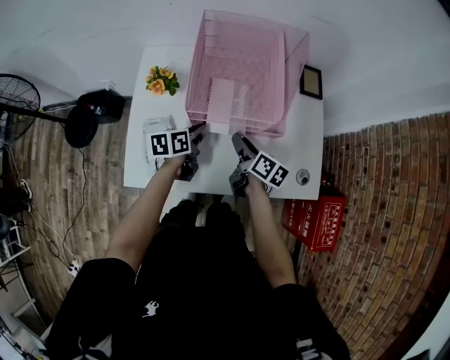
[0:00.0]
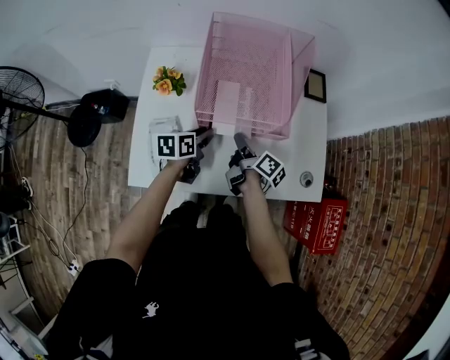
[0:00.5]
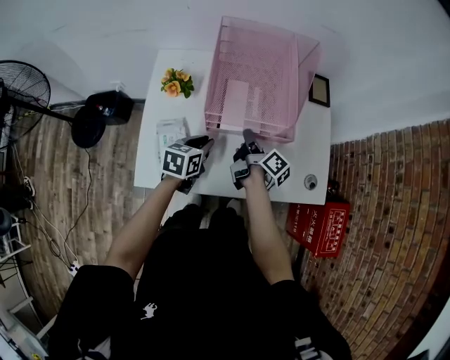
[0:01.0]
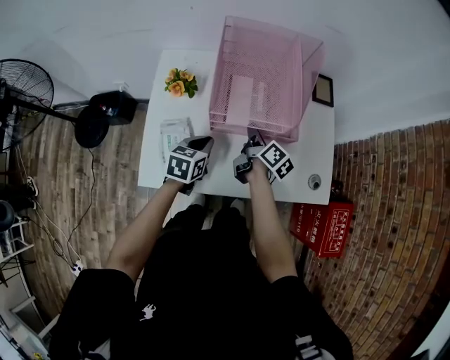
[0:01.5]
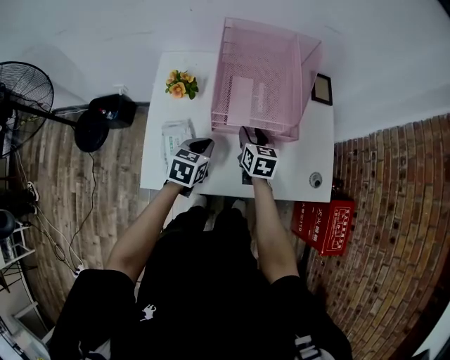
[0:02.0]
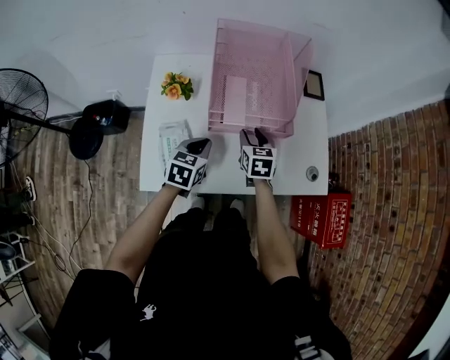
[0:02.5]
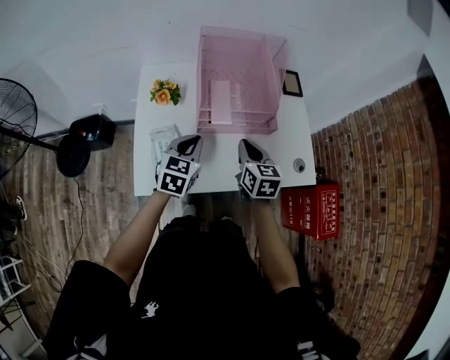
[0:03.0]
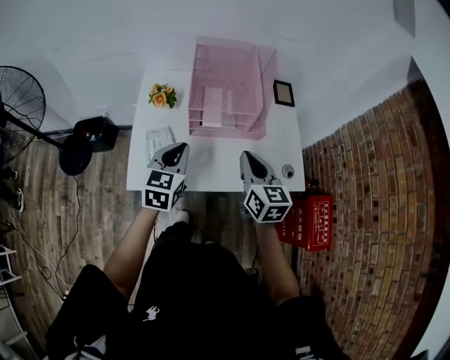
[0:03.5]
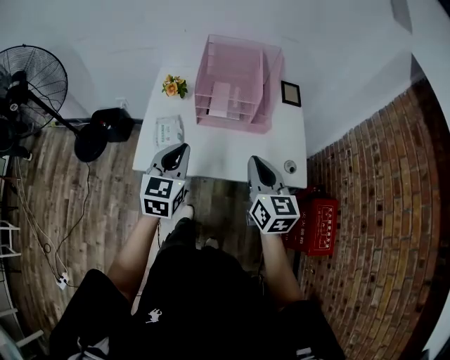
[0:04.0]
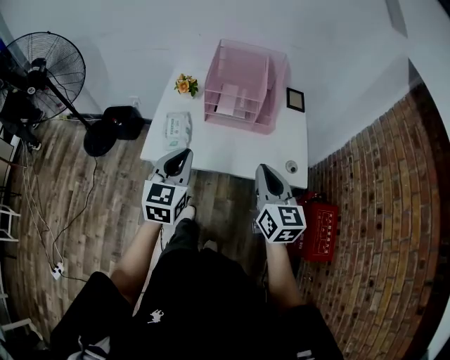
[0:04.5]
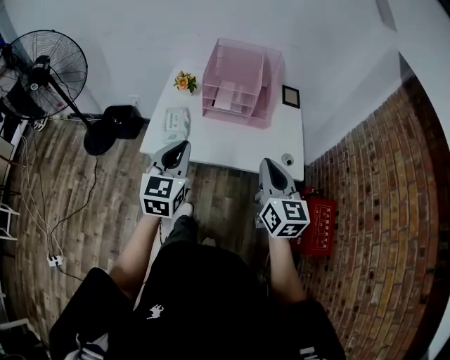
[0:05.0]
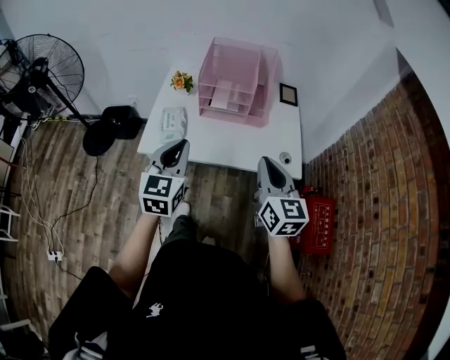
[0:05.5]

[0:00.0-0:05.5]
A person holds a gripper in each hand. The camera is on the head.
0.0 to 2.0 s: The right gripper changes place by about 5 cm, swivels about 40 degrees, and closes, then reopens; the left gripper moves backward, about 5 cm, and turns by some 30 degrees.
2.0 to 3.5 s: The grippers both shift upward and backward by about 20 cm. The right gripper closes. Meanwhile the left gripper changes its angle by roughly 20 degrees.
3.5 to 5.5 s: The left gripper heads backward and upward, covering about 20 cm. The right gripper is displaced backward and to the right by about 20 cm.

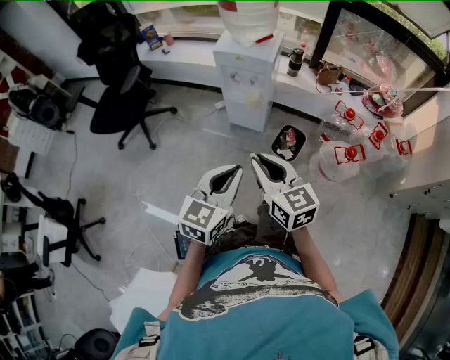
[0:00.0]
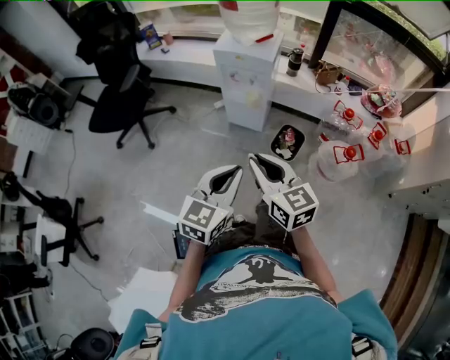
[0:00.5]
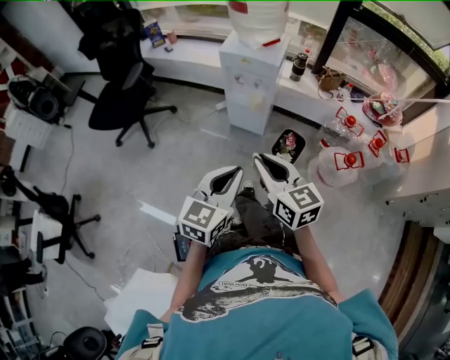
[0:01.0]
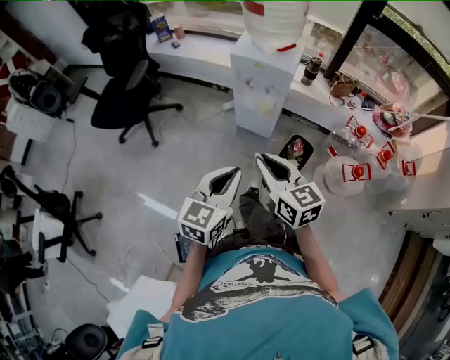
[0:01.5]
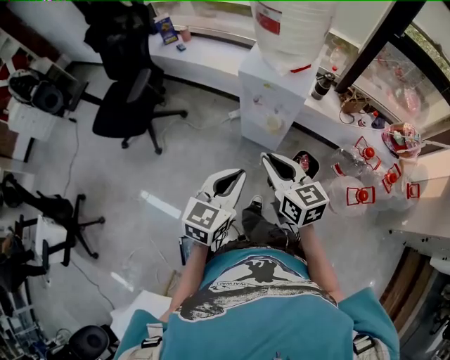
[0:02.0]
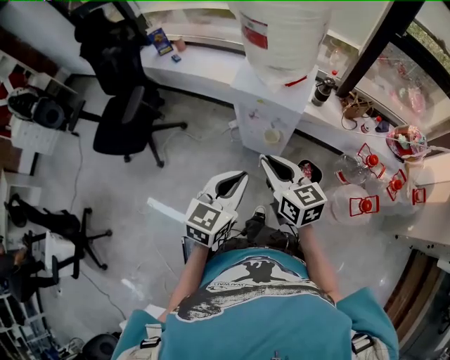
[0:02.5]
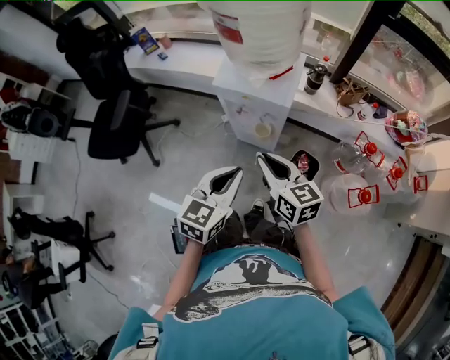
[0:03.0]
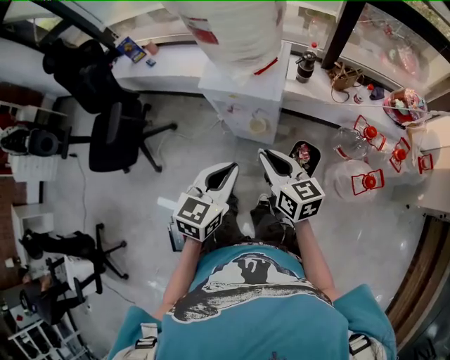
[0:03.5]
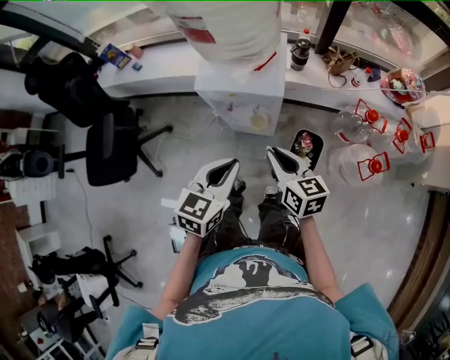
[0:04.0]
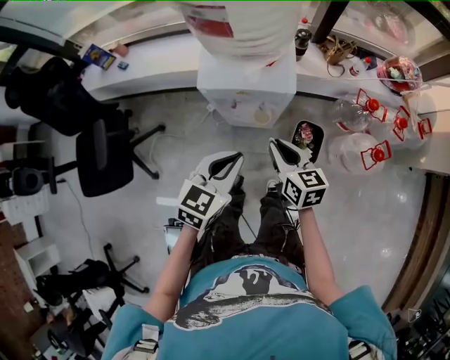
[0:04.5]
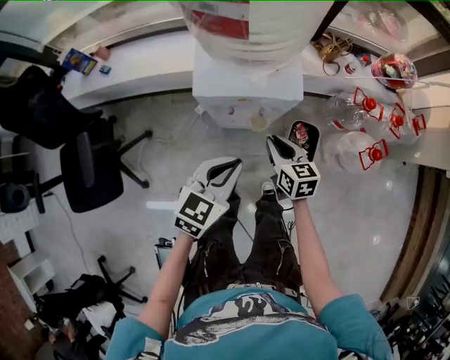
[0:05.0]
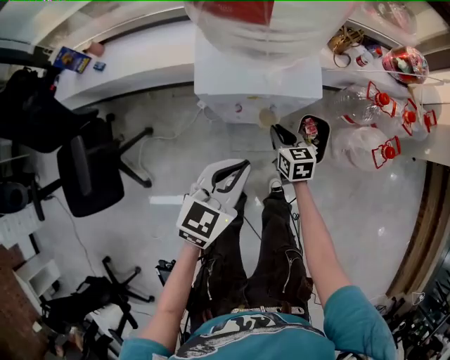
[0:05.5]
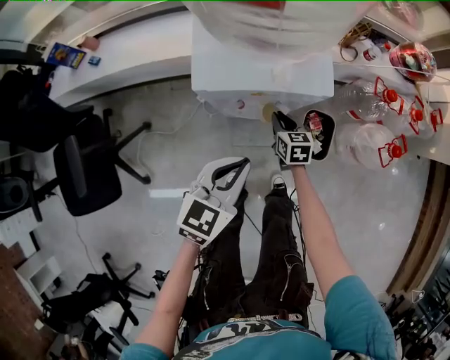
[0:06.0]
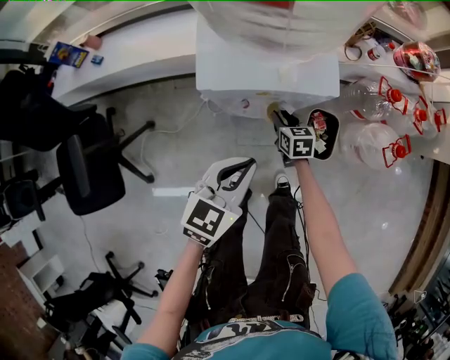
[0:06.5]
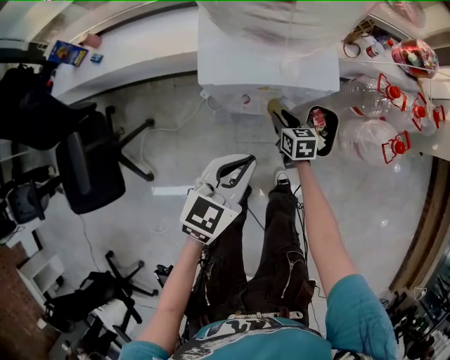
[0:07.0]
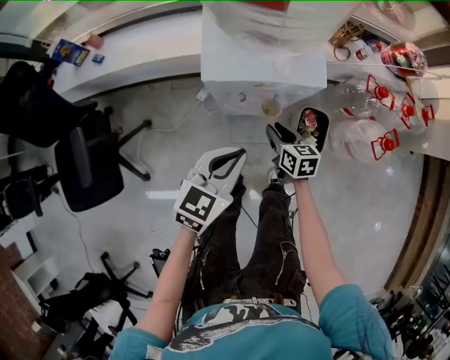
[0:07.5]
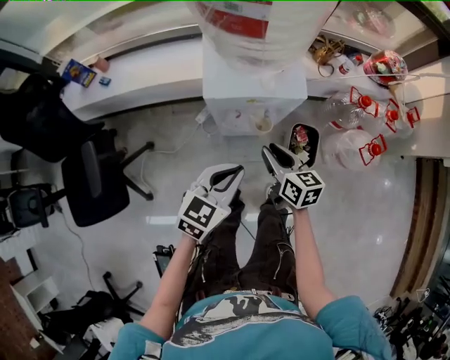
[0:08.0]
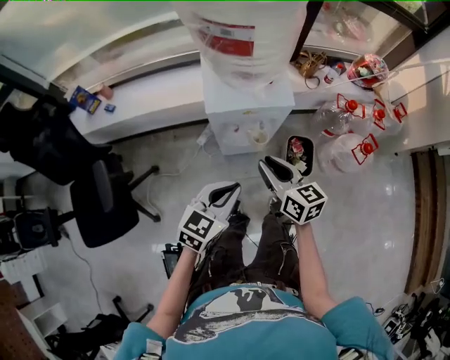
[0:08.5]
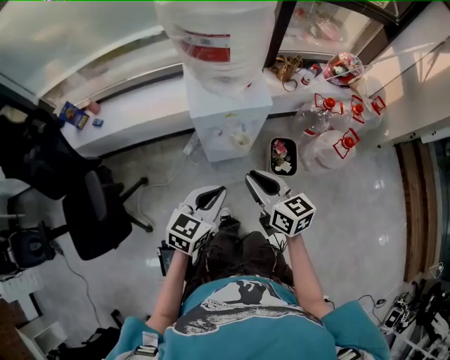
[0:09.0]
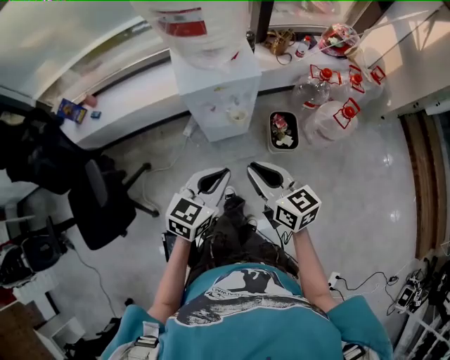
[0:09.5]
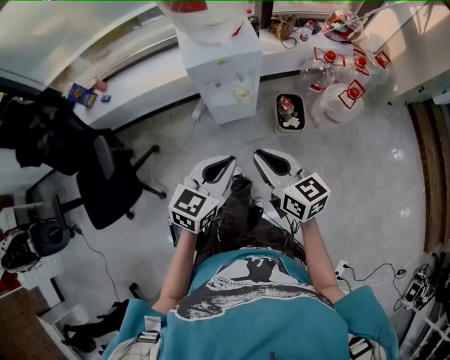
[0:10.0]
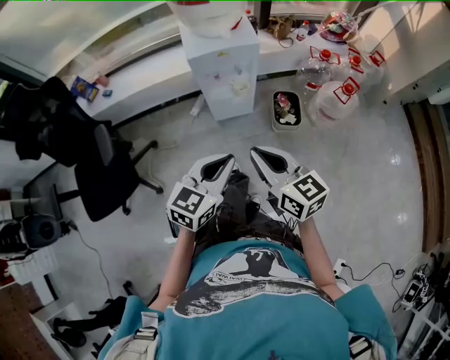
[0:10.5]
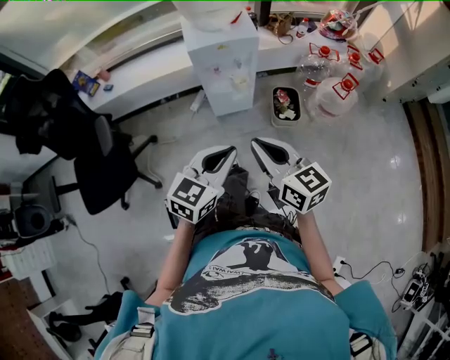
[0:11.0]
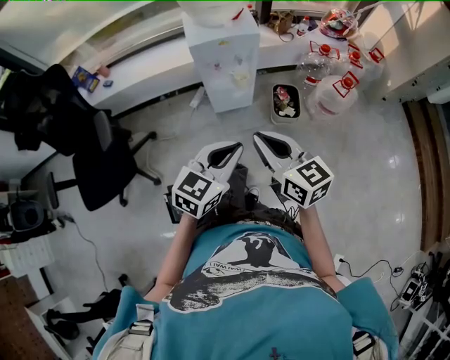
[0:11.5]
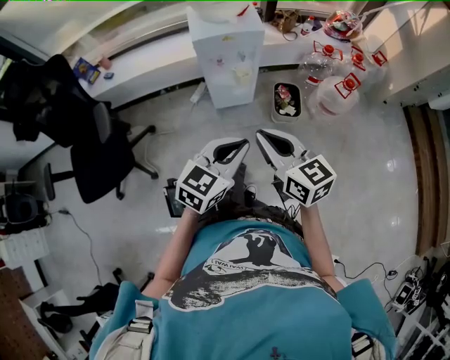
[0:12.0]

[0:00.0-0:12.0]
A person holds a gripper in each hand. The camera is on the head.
0.0 to 2.0 s: Both grippers travel together forward, some 20 cm.
2.0 to 4.0 s: The left gripper travels forward by about 15 cm. Meanwhile the right gripper shifts some 15 cm forward, downward and to the right, and turns by about 20 degrees.
4.0 to 6.0 s: The right gripper goes approximately 30 cm downward and forward, and turns by approximately 30 degrees. The left gripper moves downward, to the left and forward, approximately 15 cm.
6.0 to 8.0 s: The left gripper heads upward, covering some 5 cm. Meanwhile the right gripper is displaced upward and backward by some 25 cm, and turns by some 20 degrees.
8.0 to 10.0 s: Both grippers travel together backward and upward, approximately 25 cm. The right gripper closes.
10.0 to 12.0 s: The two grippers go approximately 10 cm backward.

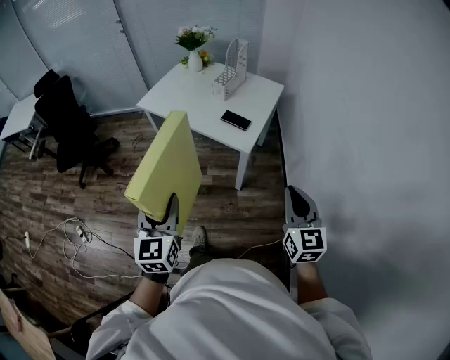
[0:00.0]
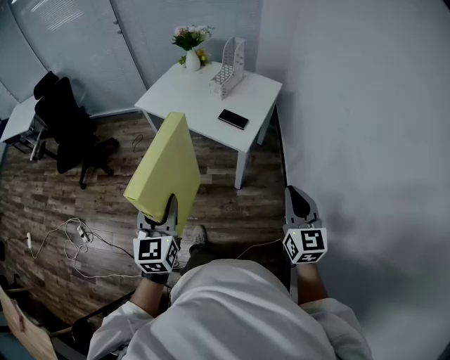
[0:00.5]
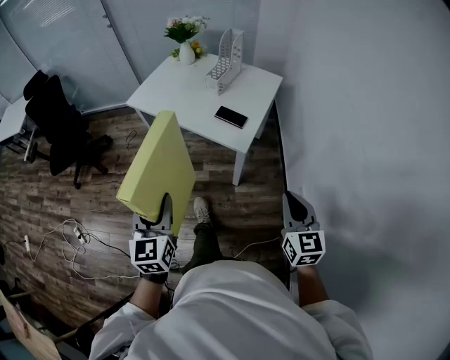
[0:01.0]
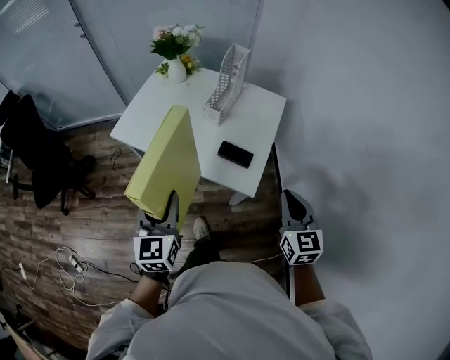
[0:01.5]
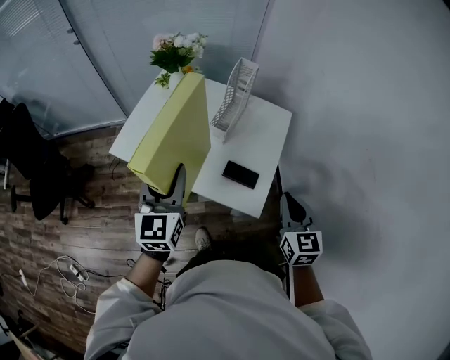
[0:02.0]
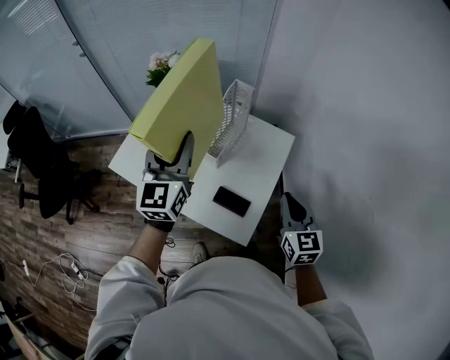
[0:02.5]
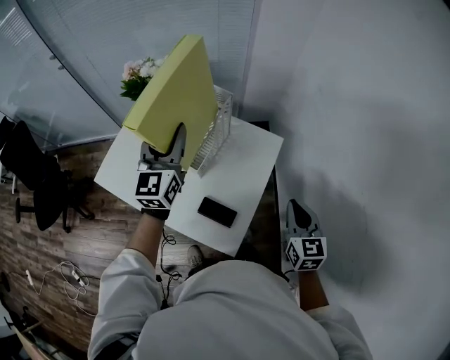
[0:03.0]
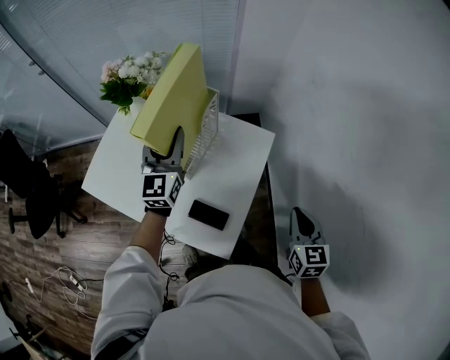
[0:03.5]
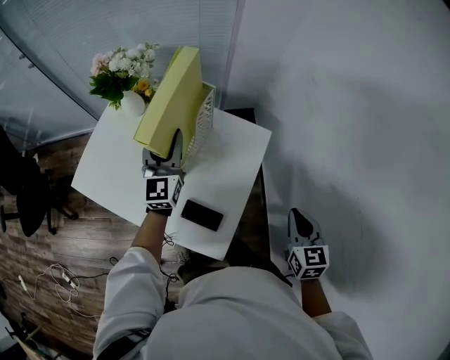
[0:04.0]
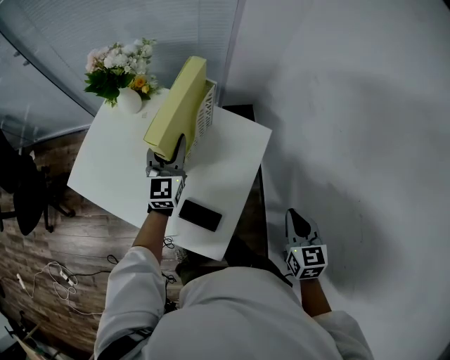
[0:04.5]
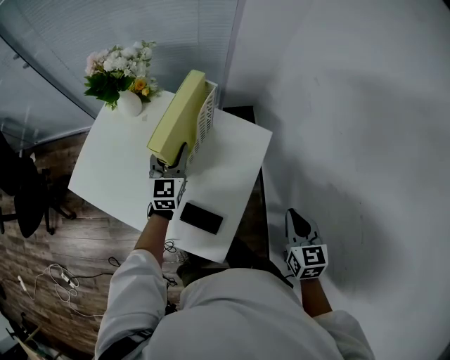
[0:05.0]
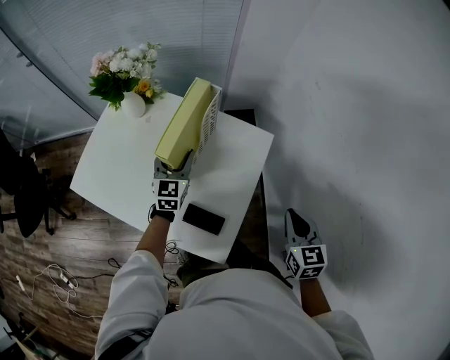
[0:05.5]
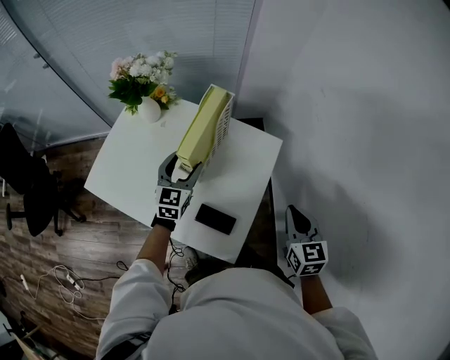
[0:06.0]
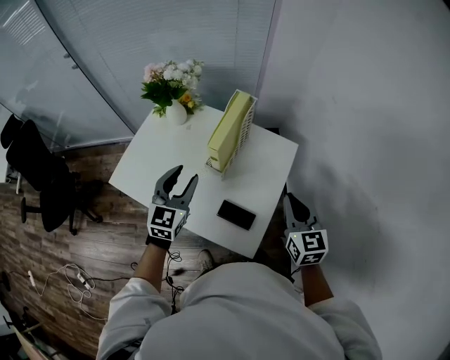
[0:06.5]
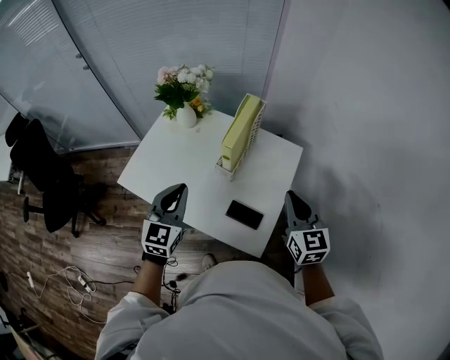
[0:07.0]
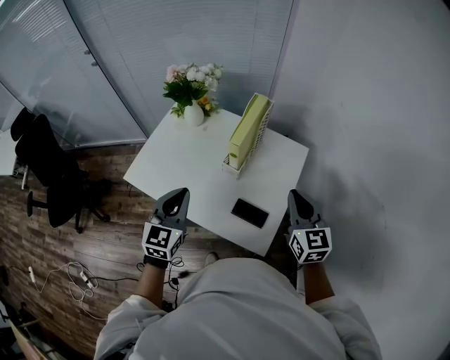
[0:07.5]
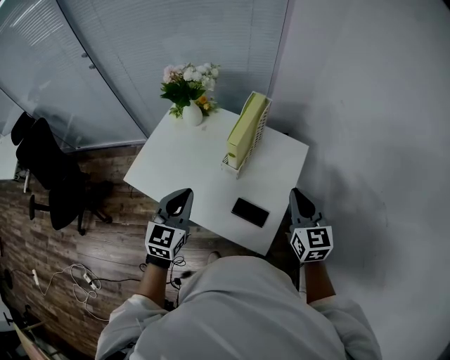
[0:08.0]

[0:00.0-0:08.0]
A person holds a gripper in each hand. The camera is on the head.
0.0 to 2.0 s: Both grippers travel together forward, some 40 cm.
2.0 to 4.0 s: The left gripper goes some 35 cm forward and to the right, while the right gripper heads to the right and forward, covering roughly 25 cm.
4.0 to 6.0 s: The right gripper goes about 5 cm to the left; the left gripper is displaced downward by approximately 10 cm, changes its angle by some 20 degrees, and opens.
6.0 to 8.0 s: The right gripper is displaced to the left and upward by about 15 cm. The left gripper travels backward, upward and to the left by some 25 cm, and closes.

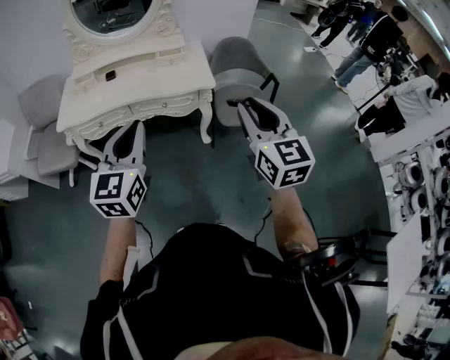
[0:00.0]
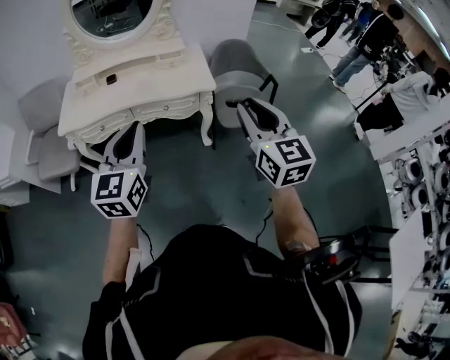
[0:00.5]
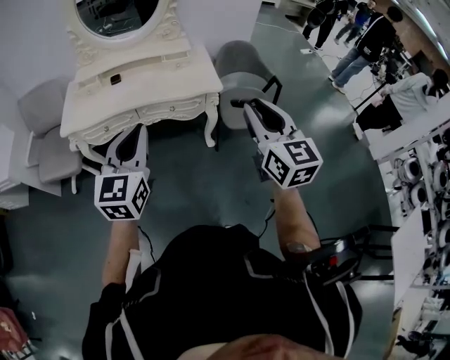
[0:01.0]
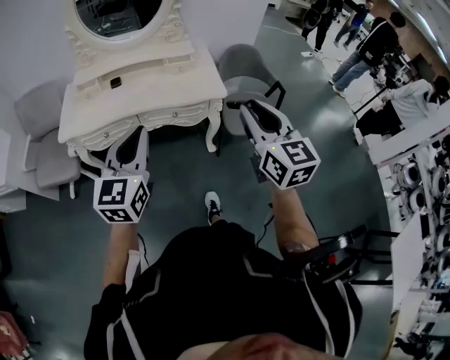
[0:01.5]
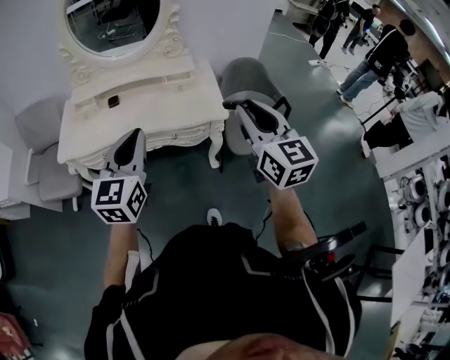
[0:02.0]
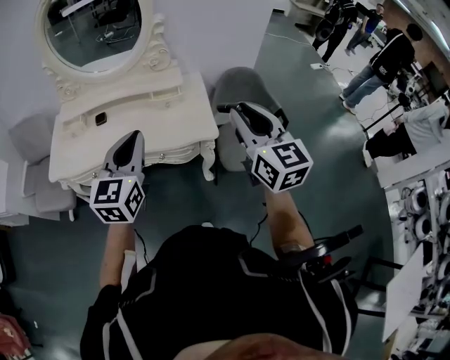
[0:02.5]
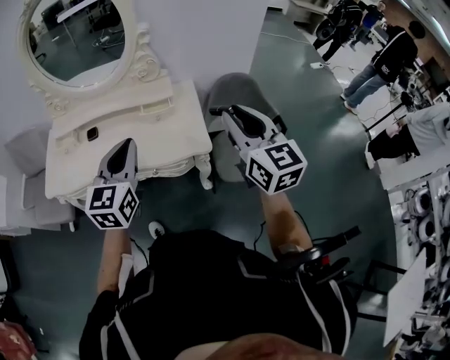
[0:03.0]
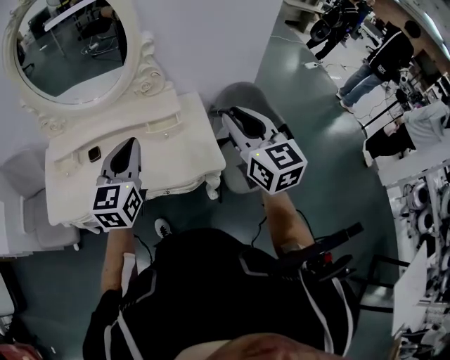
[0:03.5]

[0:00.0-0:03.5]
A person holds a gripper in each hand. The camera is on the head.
0.0 to 2.0 s: Both grippers travel together forward, some 15 cm.
2.0 to 3.5 s: Both grippers travel together forward, some 25 cm.
